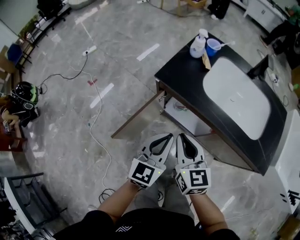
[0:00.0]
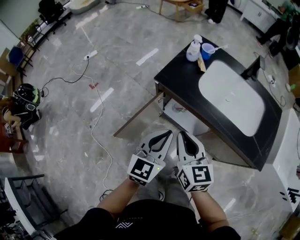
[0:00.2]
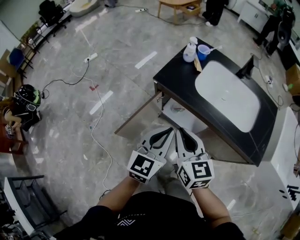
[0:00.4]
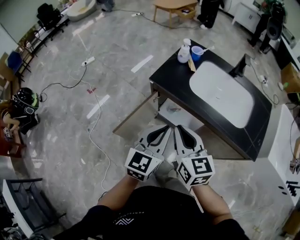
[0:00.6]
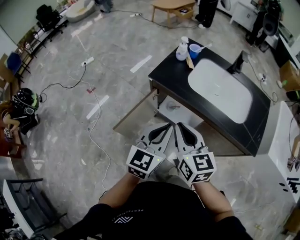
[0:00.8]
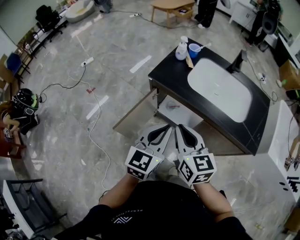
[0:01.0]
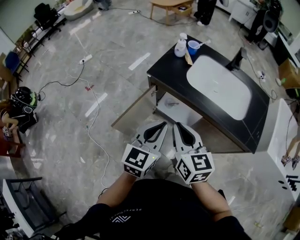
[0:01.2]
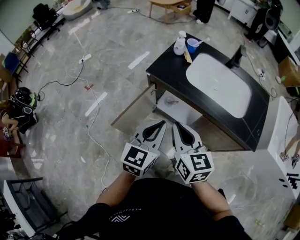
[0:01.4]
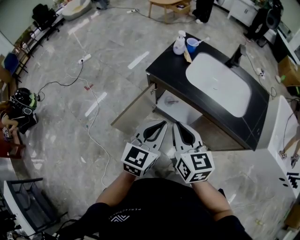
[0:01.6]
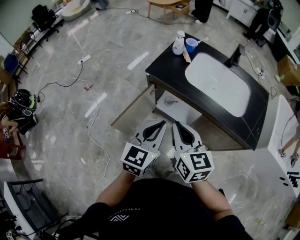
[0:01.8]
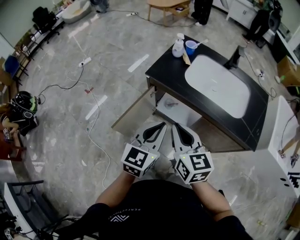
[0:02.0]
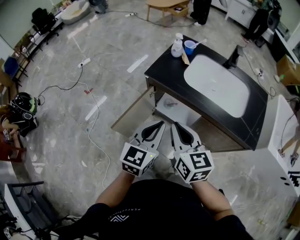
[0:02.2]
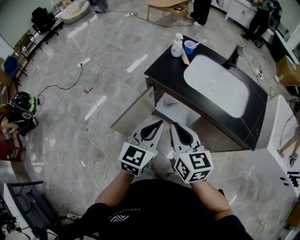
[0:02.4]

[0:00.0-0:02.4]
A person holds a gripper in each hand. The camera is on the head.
0:00.0 to 0:01.2: Both grippers travel together upward and backward, roughly 10 cm.
0:01.2 to 0:02.4: The two grippers keep their place.

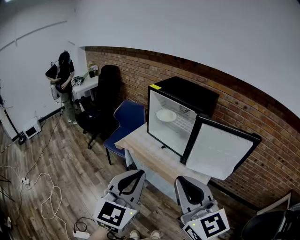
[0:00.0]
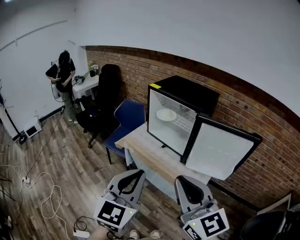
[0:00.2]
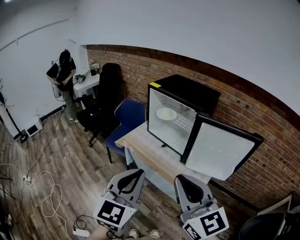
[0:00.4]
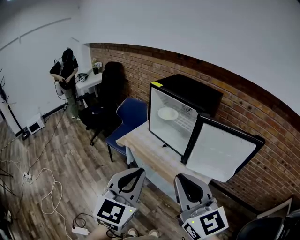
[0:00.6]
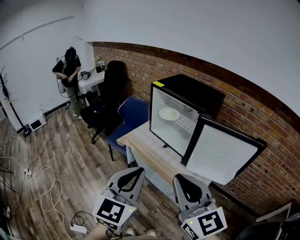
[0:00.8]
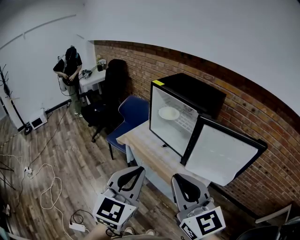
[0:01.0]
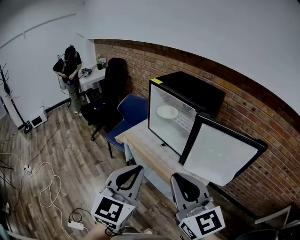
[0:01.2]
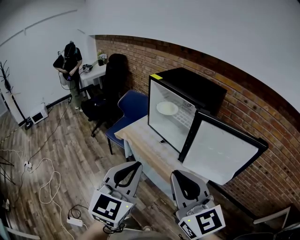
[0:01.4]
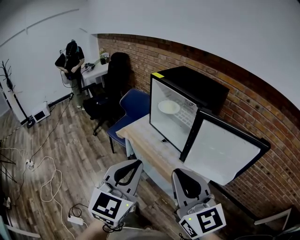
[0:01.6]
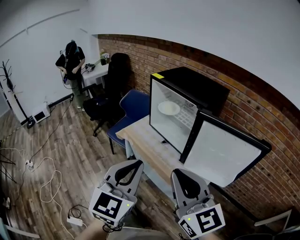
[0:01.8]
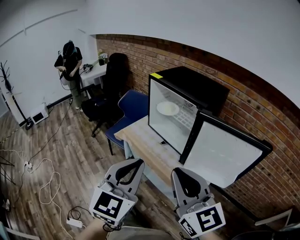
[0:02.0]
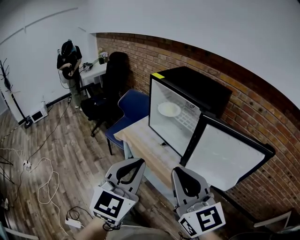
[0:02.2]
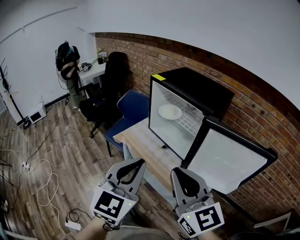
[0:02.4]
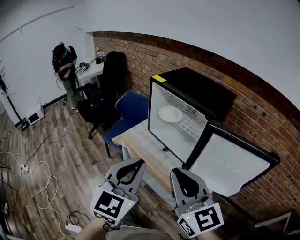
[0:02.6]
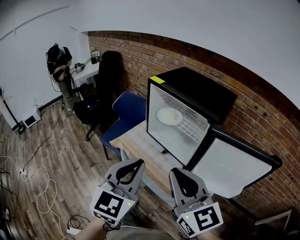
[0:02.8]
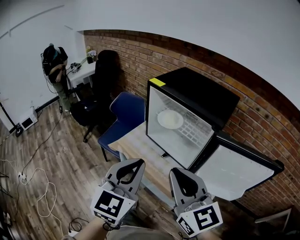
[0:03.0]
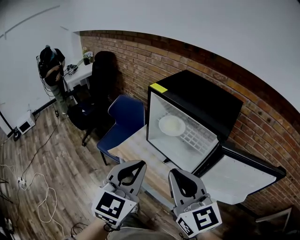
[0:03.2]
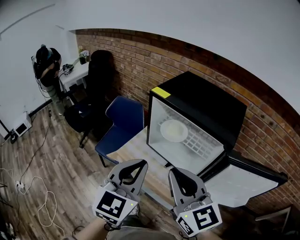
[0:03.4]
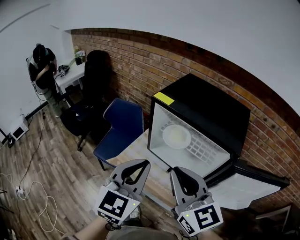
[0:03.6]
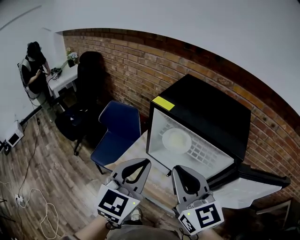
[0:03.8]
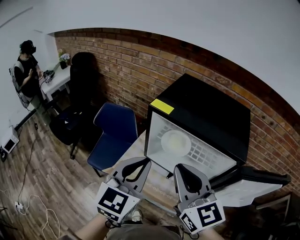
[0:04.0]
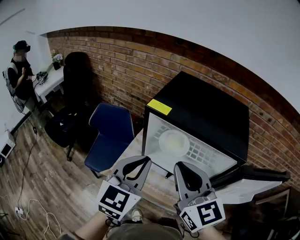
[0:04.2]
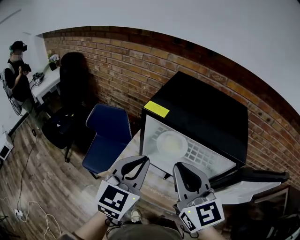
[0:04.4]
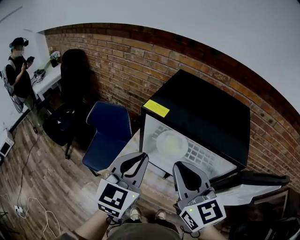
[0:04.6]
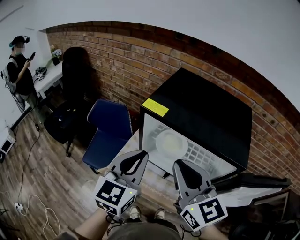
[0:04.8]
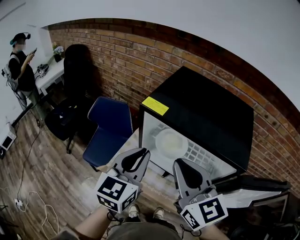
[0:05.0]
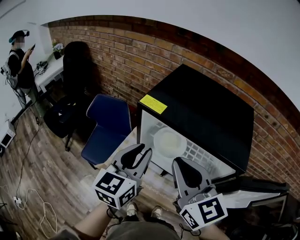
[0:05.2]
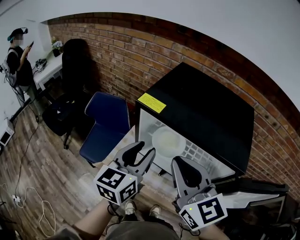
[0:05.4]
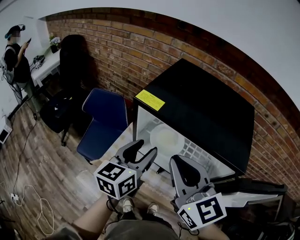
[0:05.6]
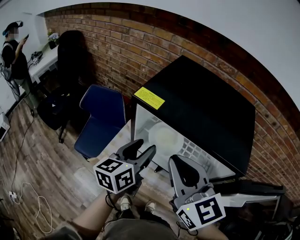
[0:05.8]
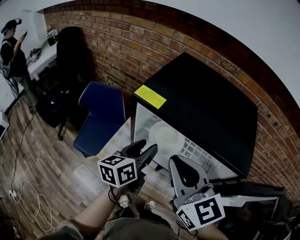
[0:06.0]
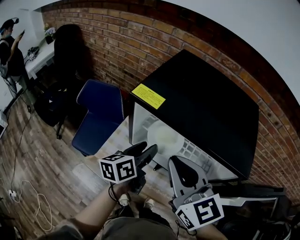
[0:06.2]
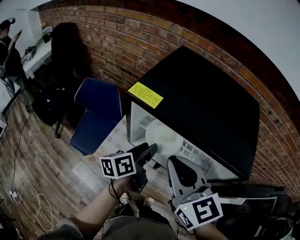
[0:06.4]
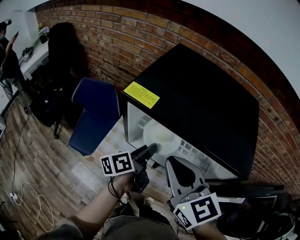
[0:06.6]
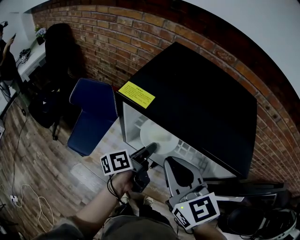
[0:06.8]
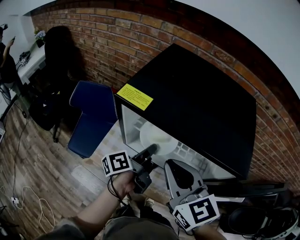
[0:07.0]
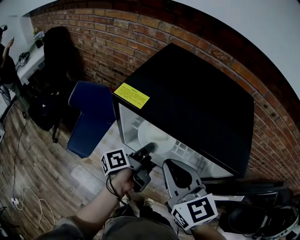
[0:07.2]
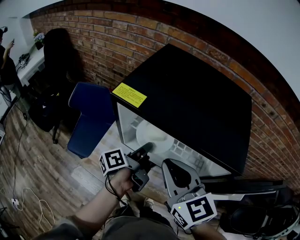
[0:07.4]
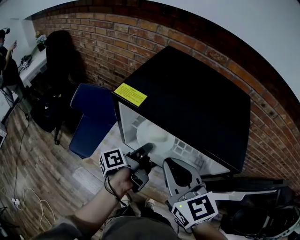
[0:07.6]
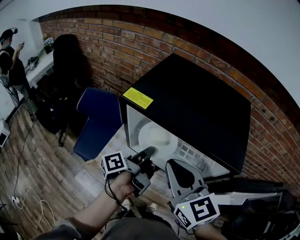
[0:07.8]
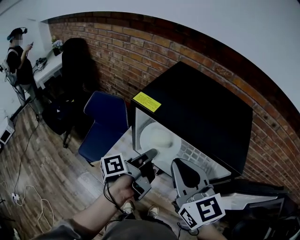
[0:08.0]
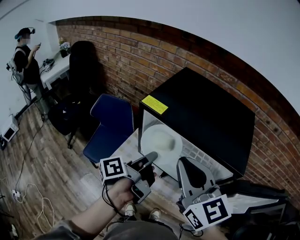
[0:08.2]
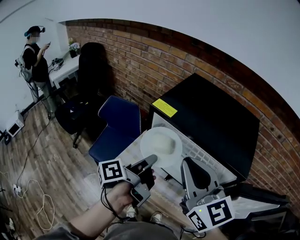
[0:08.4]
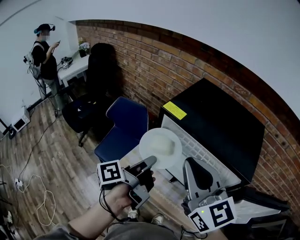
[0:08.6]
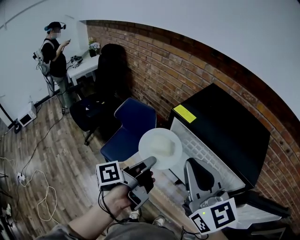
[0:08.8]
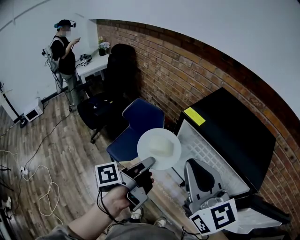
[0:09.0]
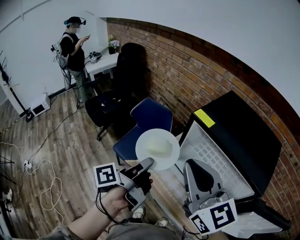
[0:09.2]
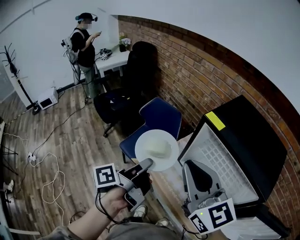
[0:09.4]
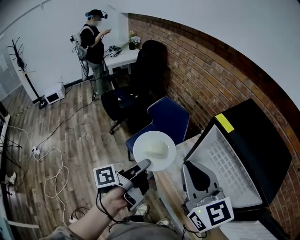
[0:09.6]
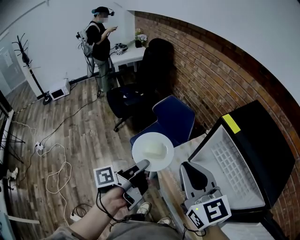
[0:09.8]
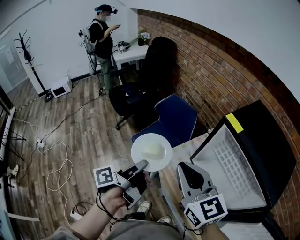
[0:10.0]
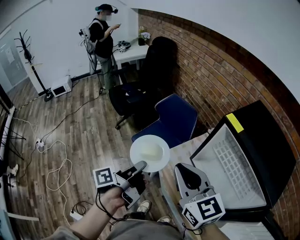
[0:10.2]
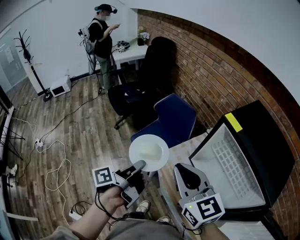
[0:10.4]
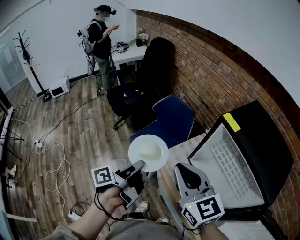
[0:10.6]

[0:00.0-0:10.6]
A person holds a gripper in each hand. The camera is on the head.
0:00.0 to 0:01.6: The left gripper travels to the right by about 5 cm. The right gripper travels to the right and forward by roughly 10 cm.
0:01.6 to 0:03.0: The two grippers go some 15 cm forward.
0:03.0 to 0:04.6: The two grippers go roughly 25 cm forward.
0:04.6 to 0:06.0: The left gripper is displaced downward and forward by approximately 15 cm, twists roughly 40 degrees counterclockwise, seen from behind, and opens up.
0:06.0 to 0:07.6: The left gripper moves some 5 cm, rotates around the line of its fingers by approximately 50 degrees, counterclockwise from behind, and closes its fingers.
0:07.6 to 0:09.0: The left gripper moves to the left, upward and backward, about 25 cm, and changes its angle by about 20 degrees. The right gripper goes some 15 cm upward and to the left, and changes its angle by about 20 degrees.
0:09.0 to 0:10.6: Both grippers travel together to the left and downward, approximately 15 cm. The right gripper swivels roughly 20 degrees.

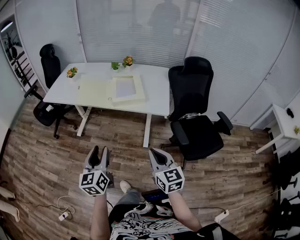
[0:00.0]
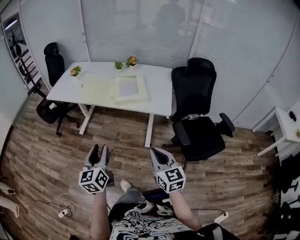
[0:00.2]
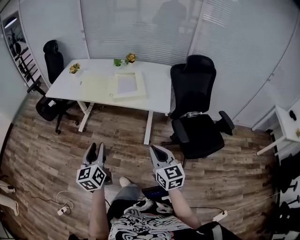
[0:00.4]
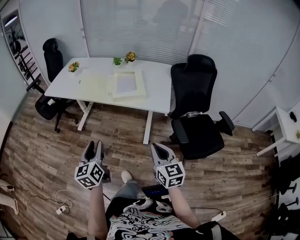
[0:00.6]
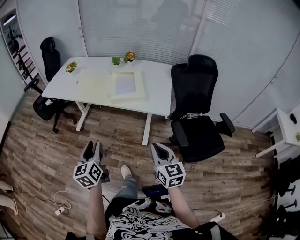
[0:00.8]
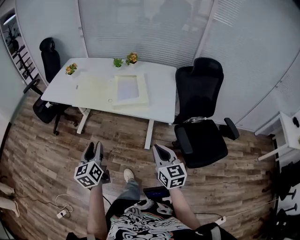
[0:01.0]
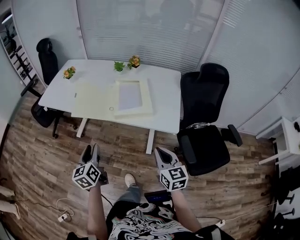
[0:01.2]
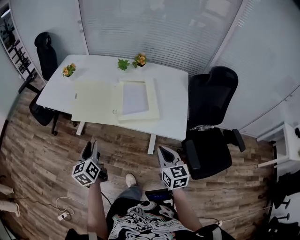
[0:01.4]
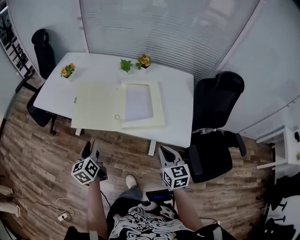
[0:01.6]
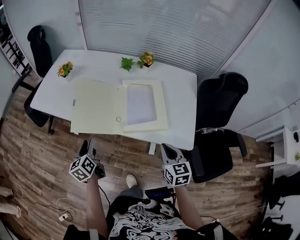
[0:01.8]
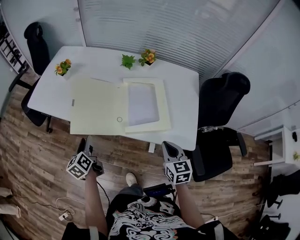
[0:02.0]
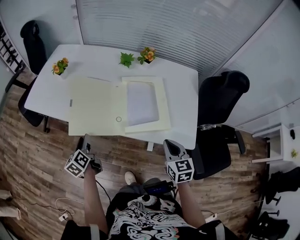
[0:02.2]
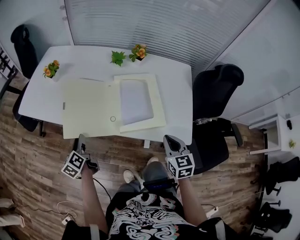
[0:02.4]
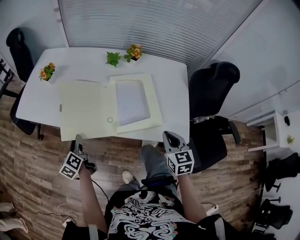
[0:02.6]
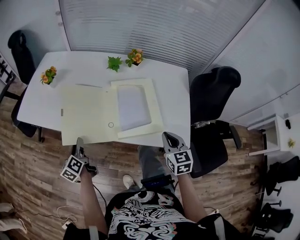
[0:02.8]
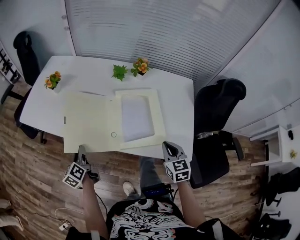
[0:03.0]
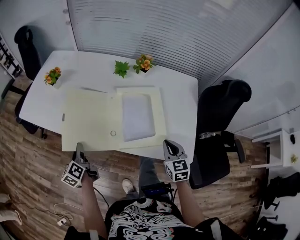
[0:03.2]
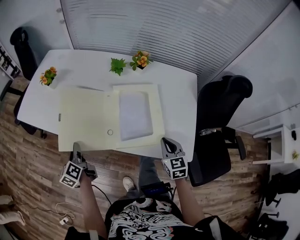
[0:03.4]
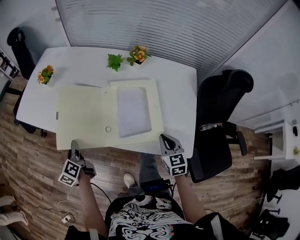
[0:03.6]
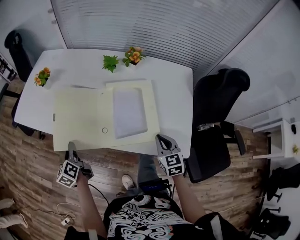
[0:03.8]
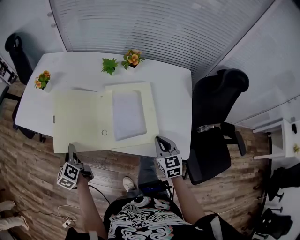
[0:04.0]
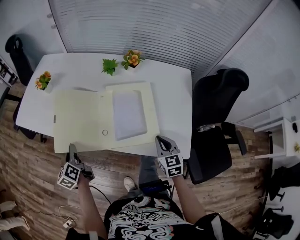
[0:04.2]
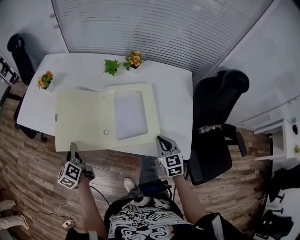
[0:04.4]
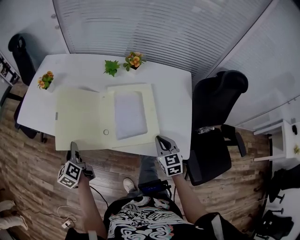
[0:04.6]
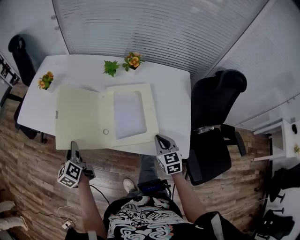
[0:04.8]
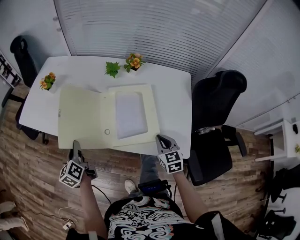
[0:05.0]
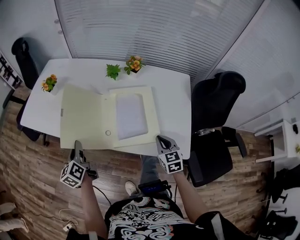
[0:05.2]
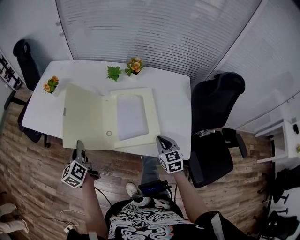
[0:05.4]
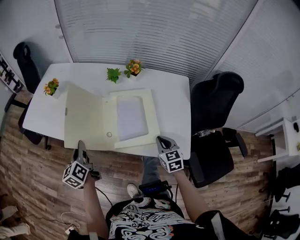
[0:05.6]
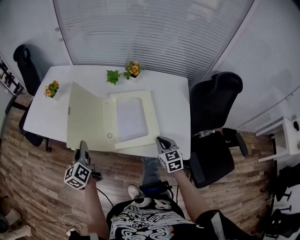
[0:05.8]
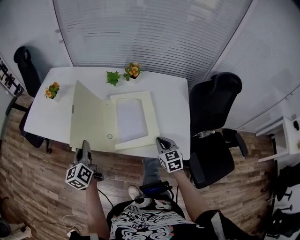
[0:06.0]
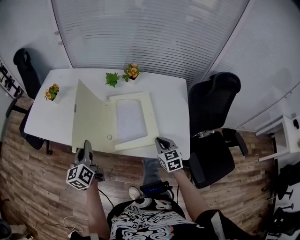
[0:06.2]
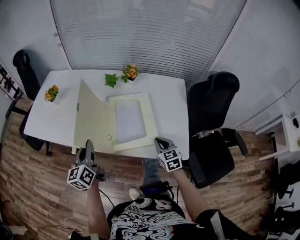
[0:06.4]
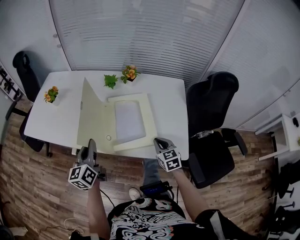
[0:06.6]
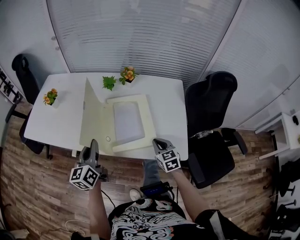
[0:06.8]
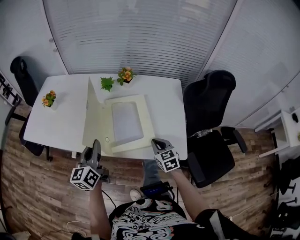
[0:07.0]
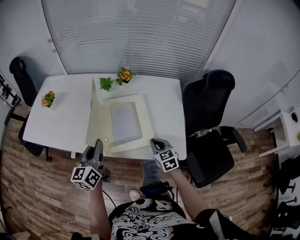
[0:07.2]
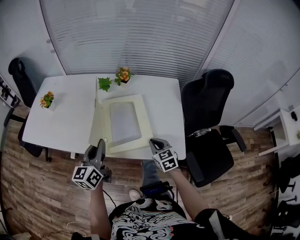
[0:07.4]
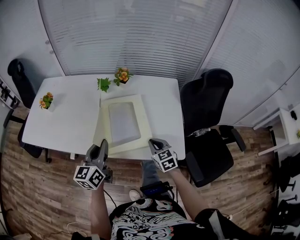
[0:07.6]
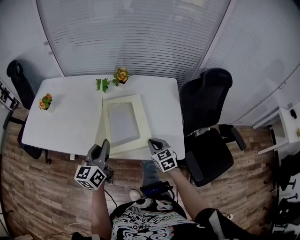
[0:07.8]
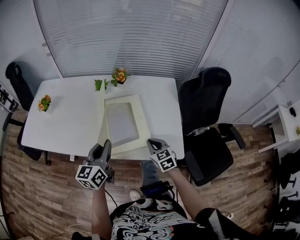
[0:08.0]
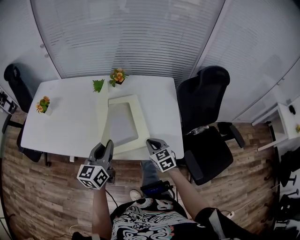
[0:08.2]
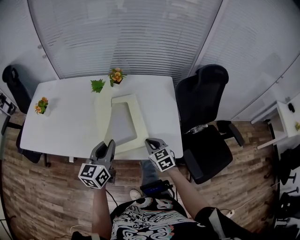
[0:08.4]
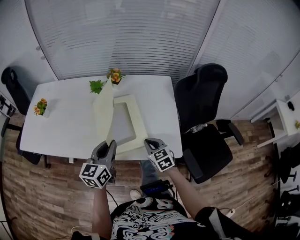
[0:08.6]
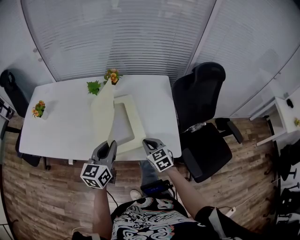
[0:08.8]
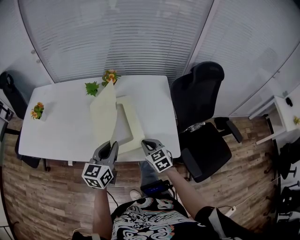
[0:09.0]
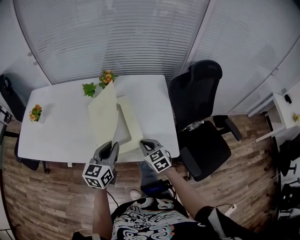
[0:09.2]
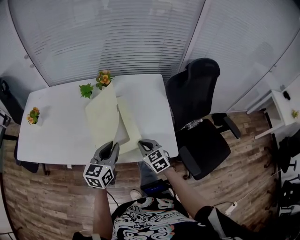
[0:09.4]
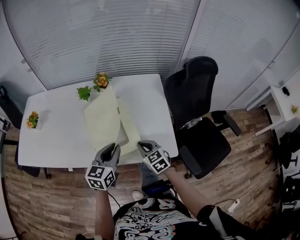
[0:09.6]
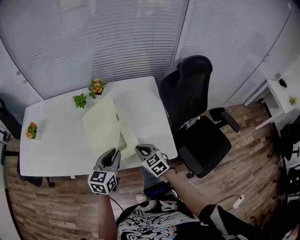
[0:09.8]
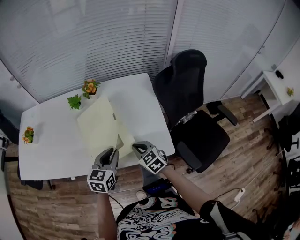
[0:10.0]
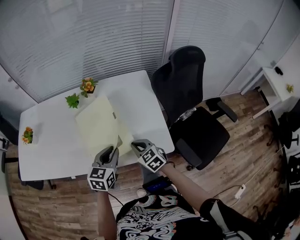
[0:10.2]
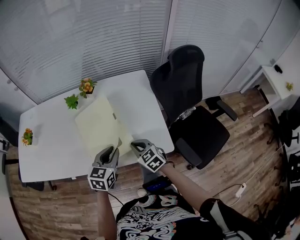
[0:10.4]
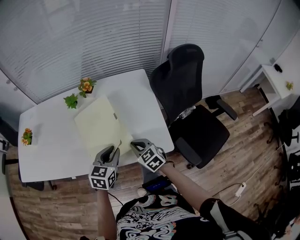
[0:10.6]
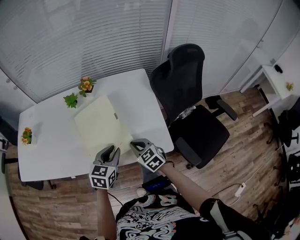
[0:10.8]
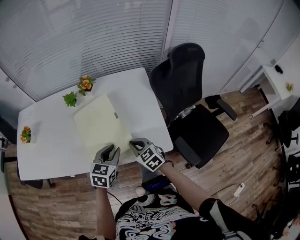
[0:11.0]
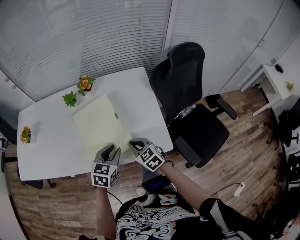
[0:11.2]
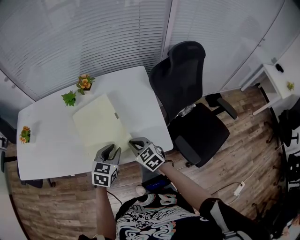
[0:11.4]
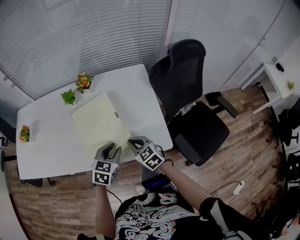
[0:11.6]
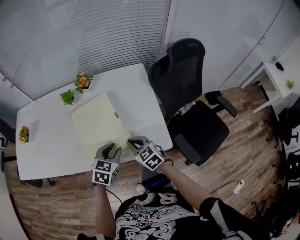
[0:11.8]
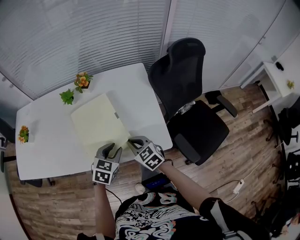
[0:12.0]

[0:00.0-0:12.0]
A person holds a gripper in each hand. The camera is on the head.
0:00.0 to 0:01.6: The two grippers go approximately 30 cm forward. The left gripper rotates roughly 20 degrees.
0:01.6 to 0:03.0: The right gripper moves forward, roughly 10 cm, while the left gripper travels forward, downward and to the left by approximately 15 cm.
0:03.0 to 0:04.4: The grippers move only a little.
0:04.4 to 0:06.0: The left gripper shifts roughly 10 cm upward and to the right.
0:06.0 to 0:07.6: The left gripper moves to the right, about 15 cm, and swivels about 20 degrees.
0:07.6 to 0:09.0: The left gripper goes approximately 10 cm to the right.
0:09.0 to 0:10.4: The left gripper travels to the right by some 5 cm, and changes its angle by roughly 20 degrees.
0:10.4 to 0:12.0: The grippers make only small movements.
